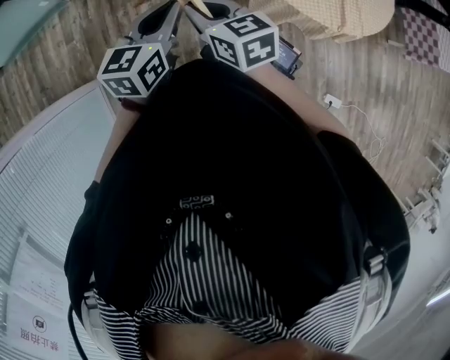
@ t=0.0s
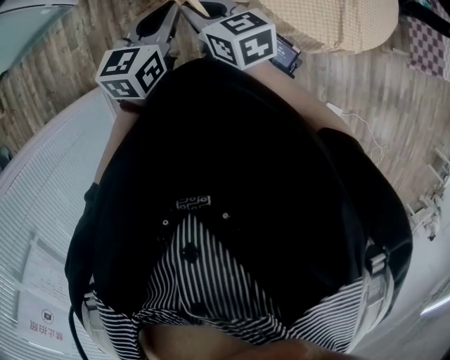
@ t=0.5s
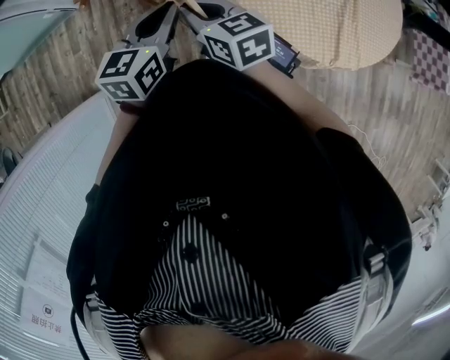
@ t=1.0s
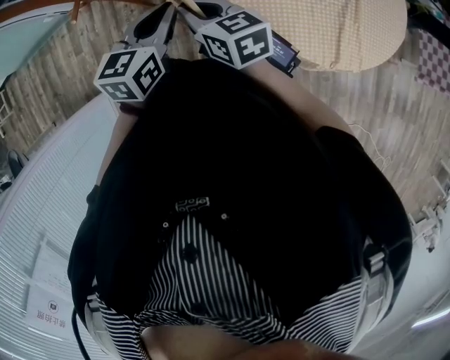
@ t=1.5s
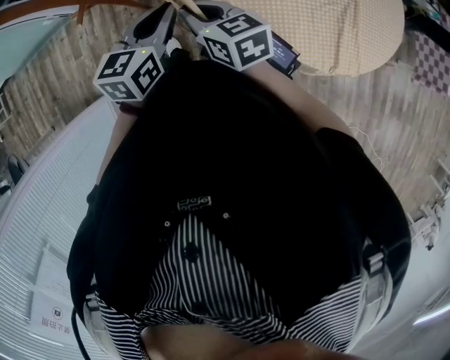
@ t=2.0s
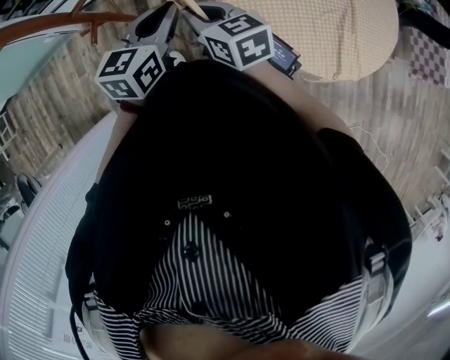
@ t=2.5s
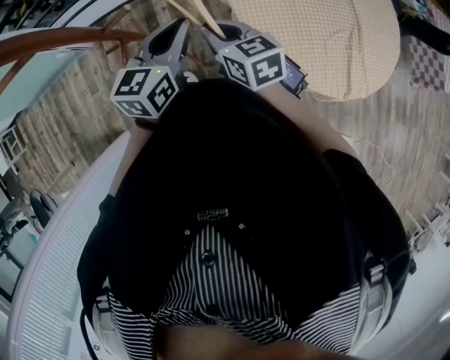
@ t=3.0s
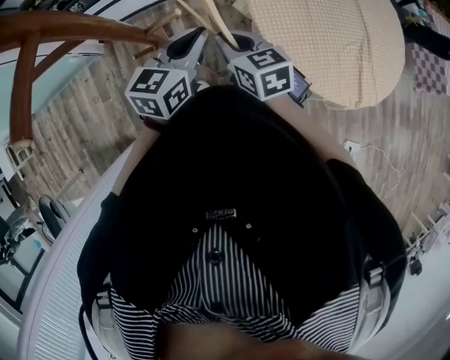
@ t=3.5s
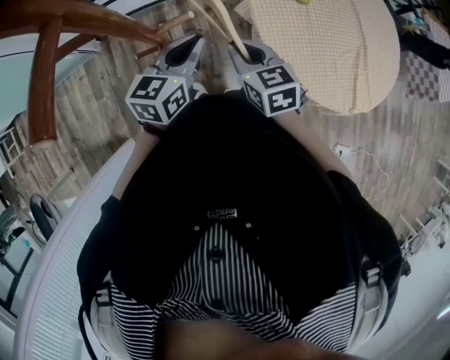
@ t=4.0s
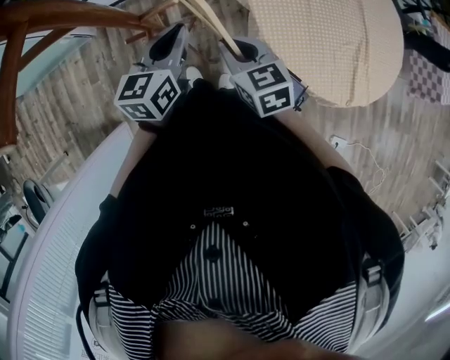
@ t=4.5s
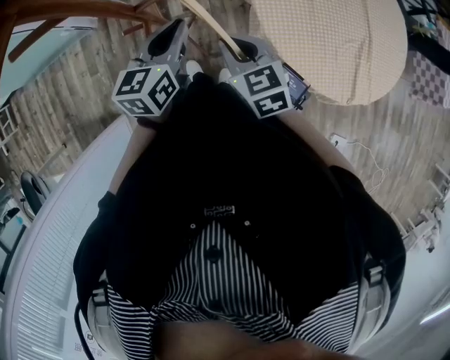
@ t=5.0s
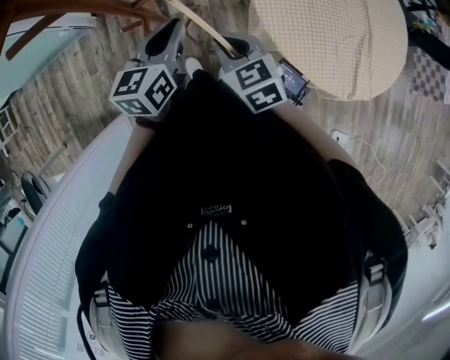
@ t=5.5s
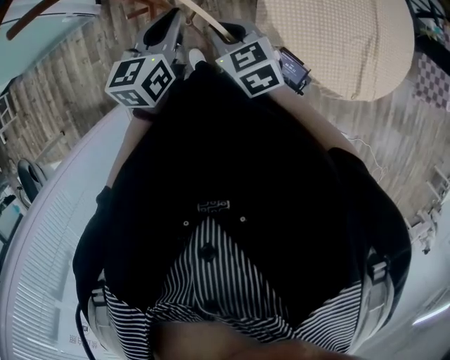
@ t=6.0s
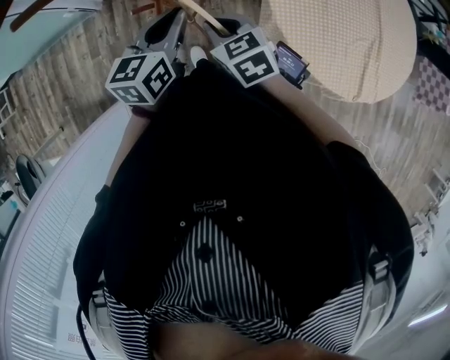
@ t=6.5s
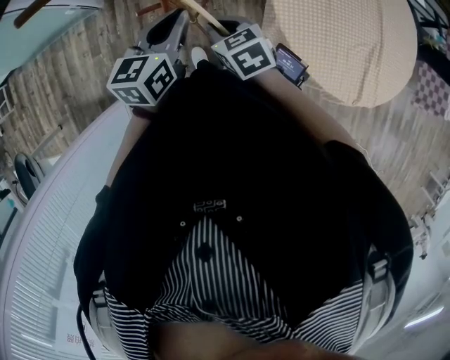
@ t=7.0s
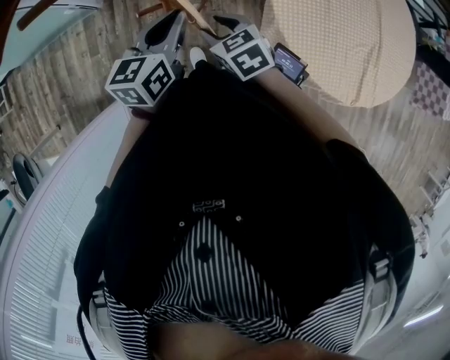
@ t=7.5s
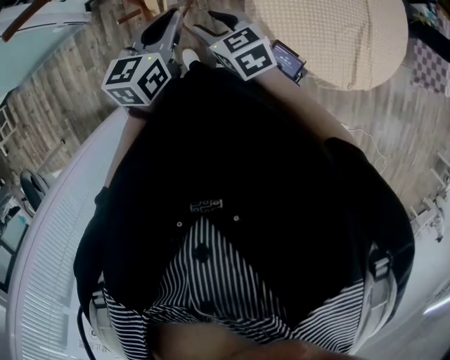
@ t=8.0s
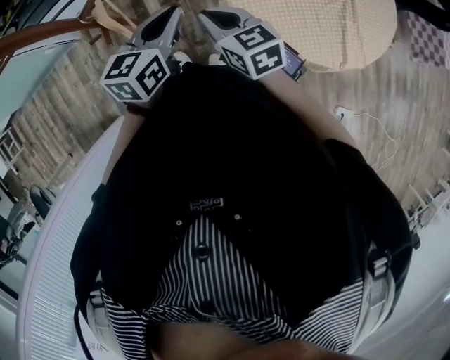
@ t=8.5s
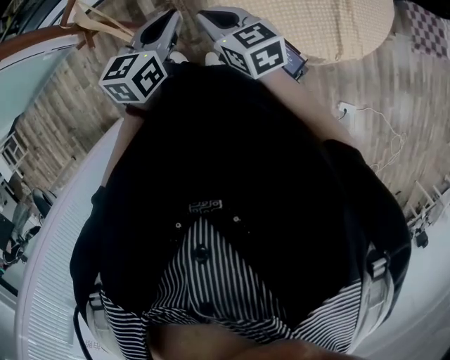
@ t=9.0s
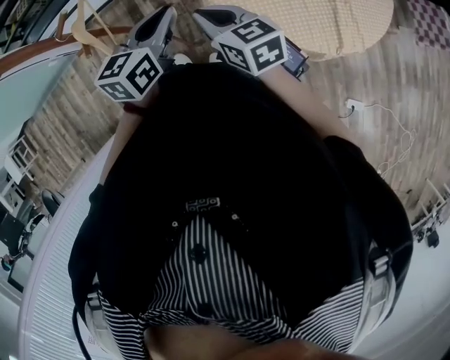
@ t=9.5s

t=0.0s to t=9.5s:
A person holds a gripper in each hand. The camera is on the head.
t=0.0s to t=2.0s: The grippers both shift forward and to the right by approximately 25 cm.
t=2.0s to t=4.0s: The grippers both shift to the left and forward by some 15 cm.
t=4.0s to t=5.5s: The right gripper goes some 5 cm backward.
t=5.5s to t=7.5s: The right gripper shifts approximately 10 cm downward and to the left, and opens.
t=7.5s to t=9.5s: The grippers both shift to the right by approximately 25 cm. The right gripper changes its angle by about 30 degrees, and closes its fingers.

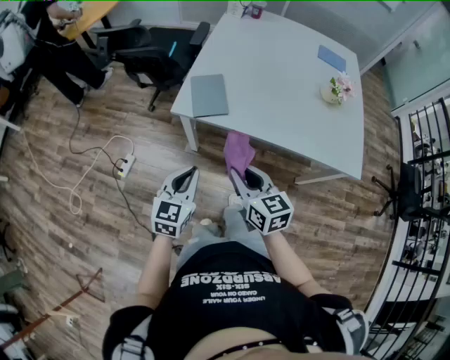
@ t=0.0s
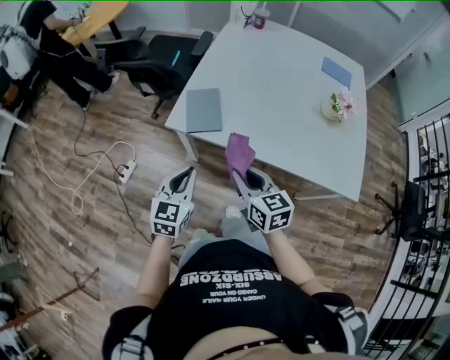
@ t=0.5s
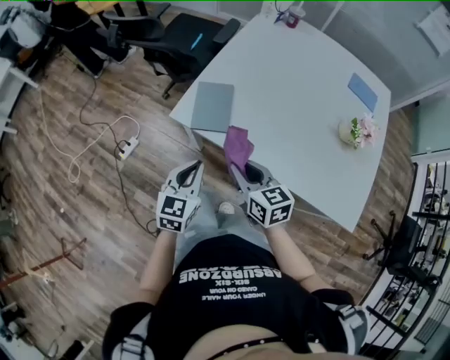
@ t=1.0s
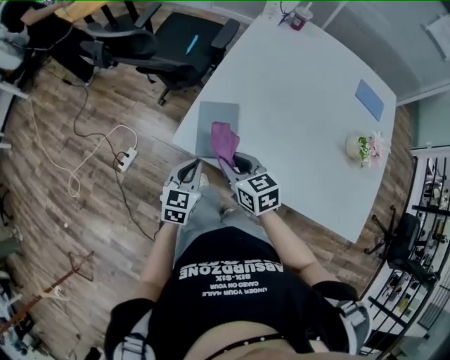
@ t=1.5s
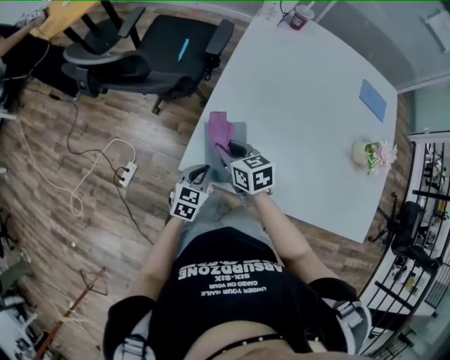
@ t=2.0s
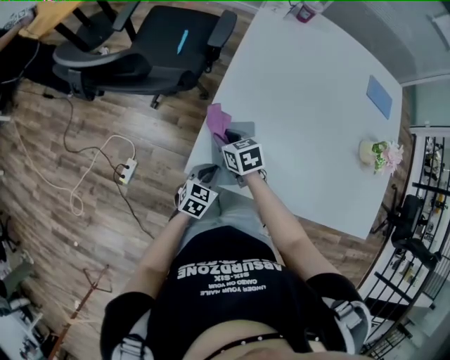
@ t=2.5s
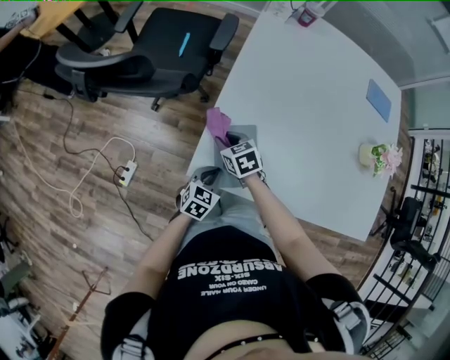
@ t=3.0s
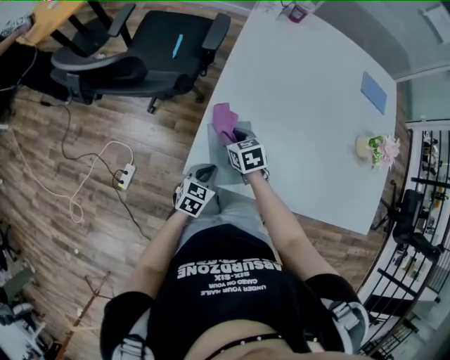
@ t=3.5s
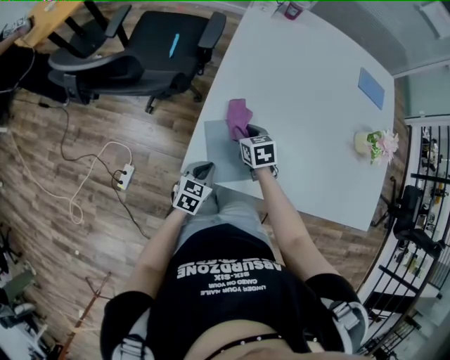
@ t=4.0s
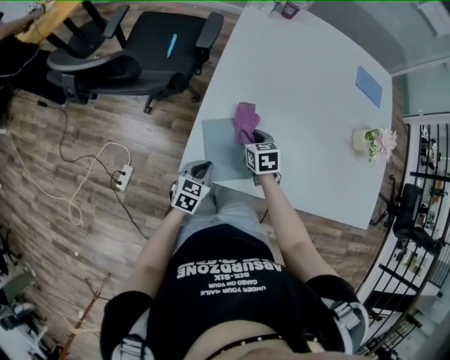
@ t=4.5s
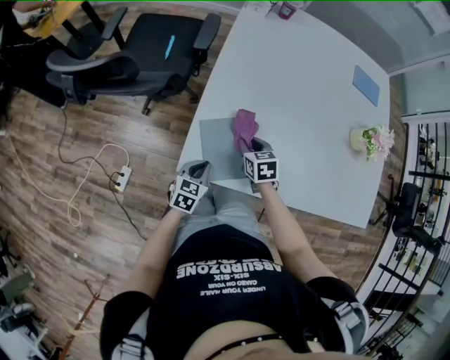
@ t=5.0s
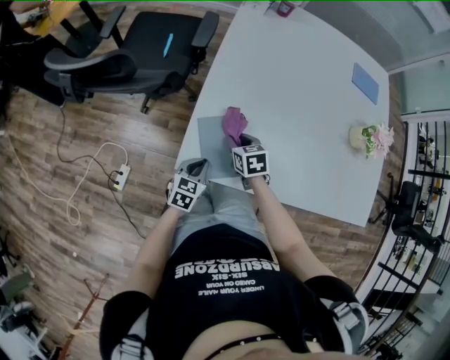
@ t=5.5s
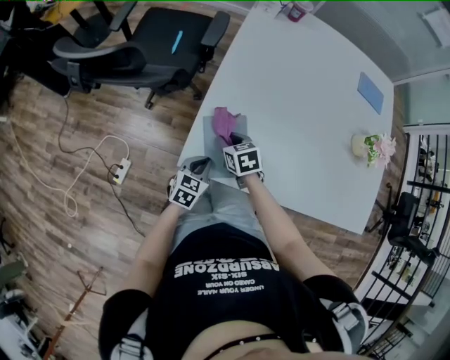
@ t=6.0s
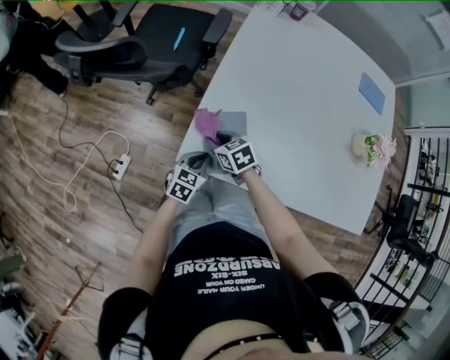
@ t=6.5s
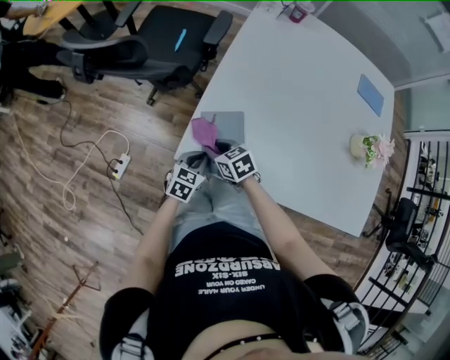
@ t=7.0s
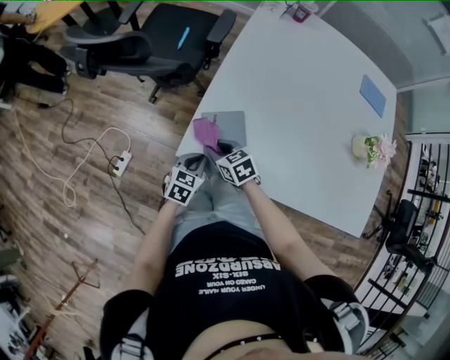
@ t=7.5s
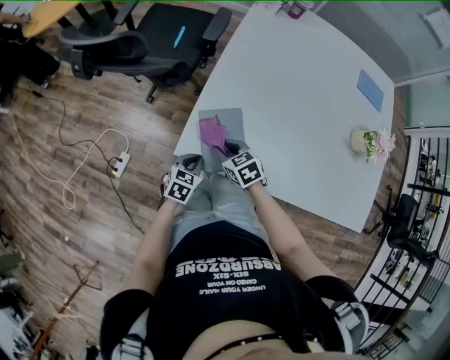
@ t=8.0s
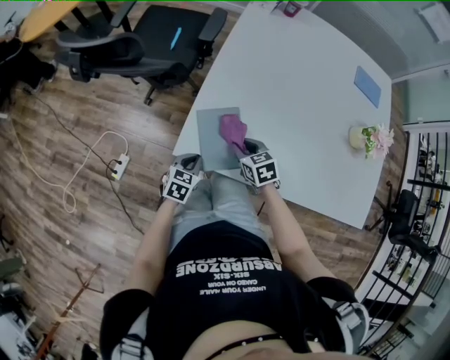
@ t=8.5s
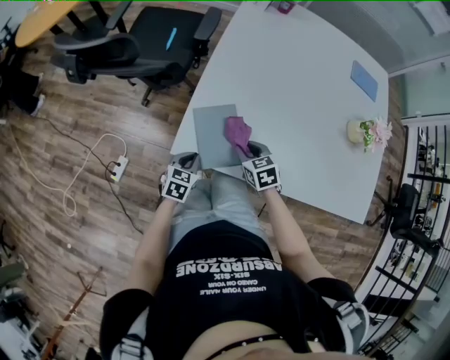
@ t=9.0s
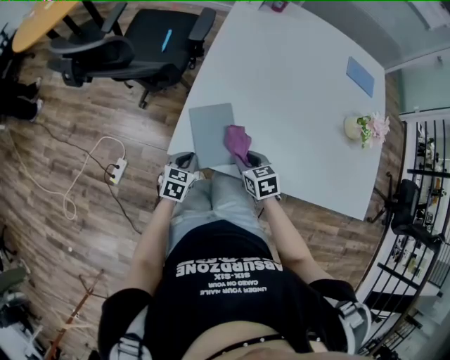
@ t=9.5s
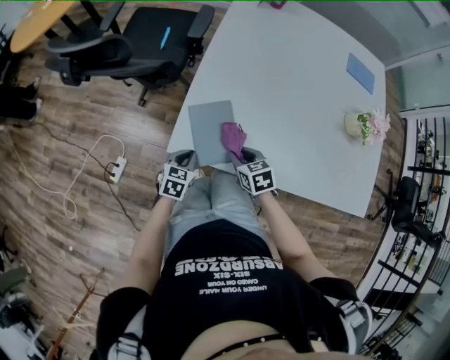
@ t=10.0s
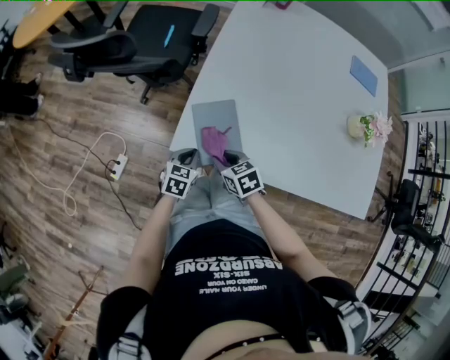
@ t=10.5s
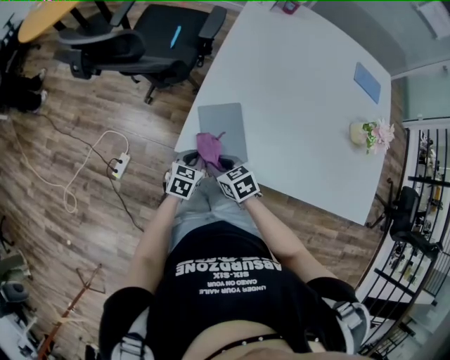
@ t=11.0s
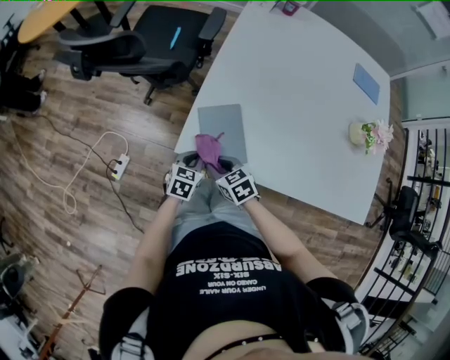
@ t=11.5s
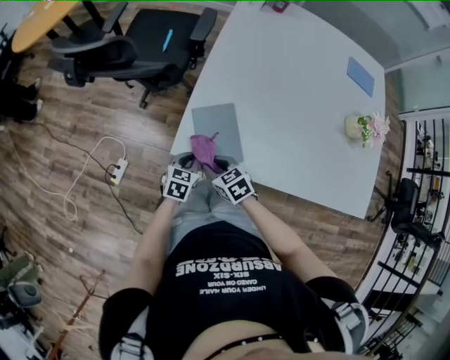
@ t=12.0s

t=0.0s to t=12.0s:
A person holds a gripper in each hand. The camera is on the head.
t=0.0s to t=2.0s: The left gripper travels forward and downward by about 35 cm, while the right gripper heads forward, covering approximately 40 cm, and turns by approximately 20 degrees.
t=2.0s to t=4.0s: The right gripper is displaced downward, forward and to the right by some 15 cm, and turns by approximately 20 degrees.
t=4.0s to t=6.0s: The right gripper travels backward by roughly 5 cm.
t=6.0s to t=8.0s: The right gripper goes approximately 5 cm backward.
t=8.0s to t=10.0s: The right gripper shifts approximately 10 cm to the right.
t=10.0s to t=12.0s: The right gripper travels to the left by approximately 10 cm.

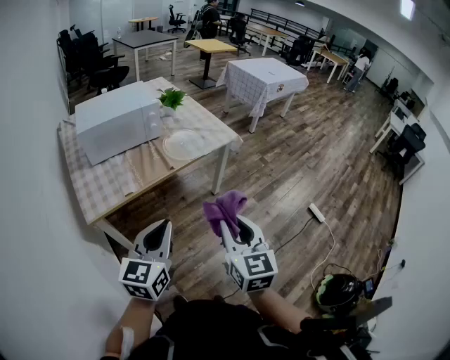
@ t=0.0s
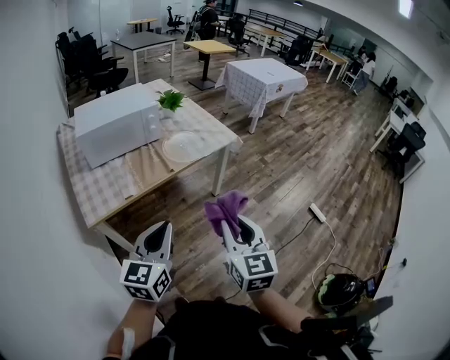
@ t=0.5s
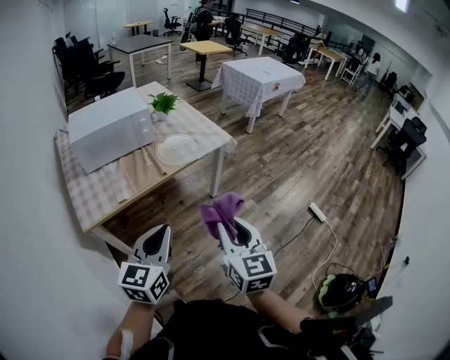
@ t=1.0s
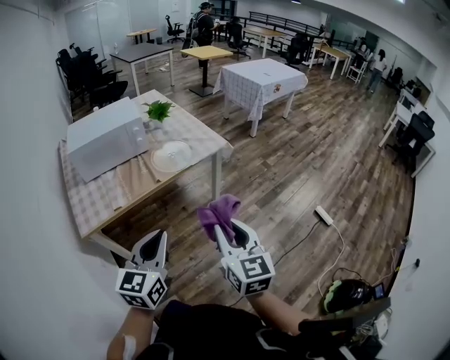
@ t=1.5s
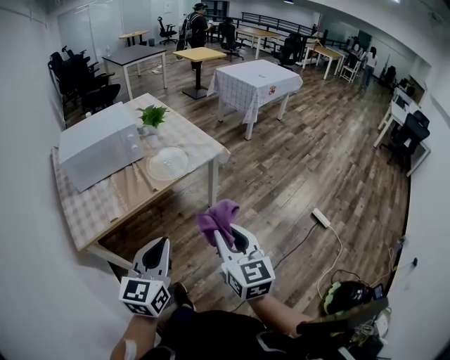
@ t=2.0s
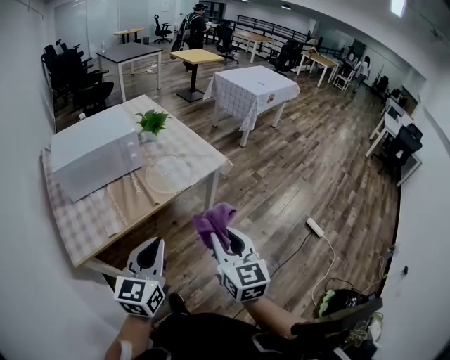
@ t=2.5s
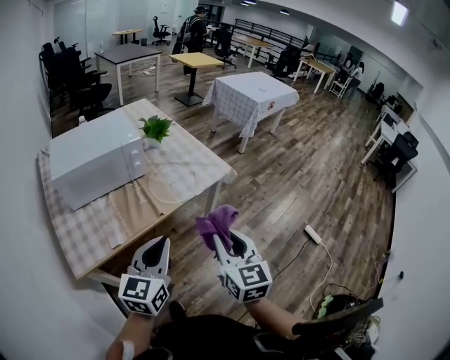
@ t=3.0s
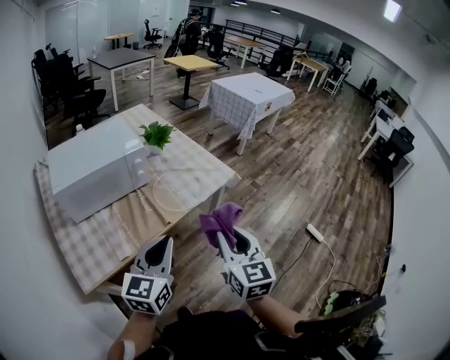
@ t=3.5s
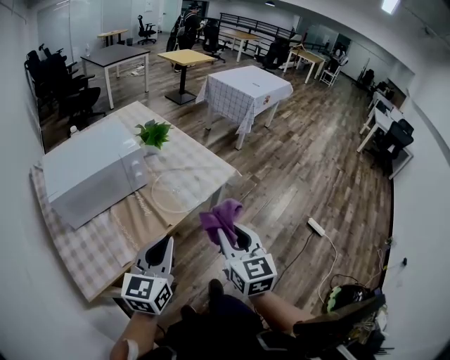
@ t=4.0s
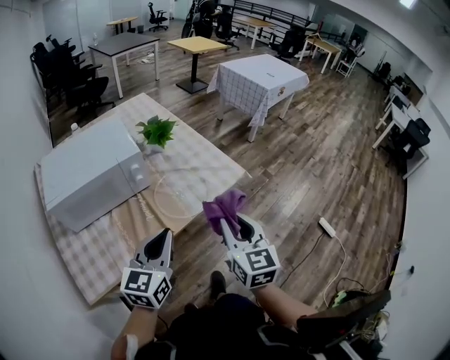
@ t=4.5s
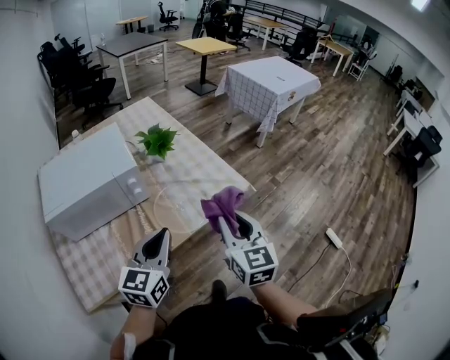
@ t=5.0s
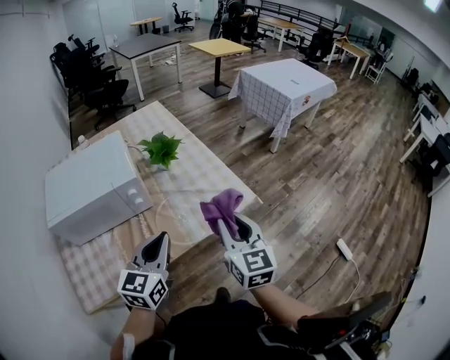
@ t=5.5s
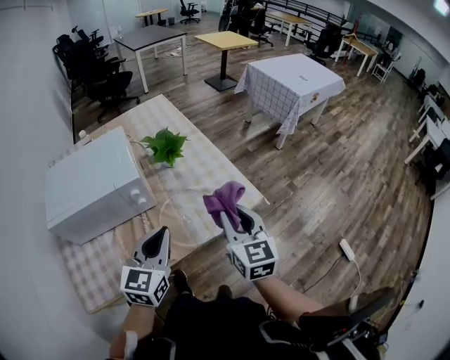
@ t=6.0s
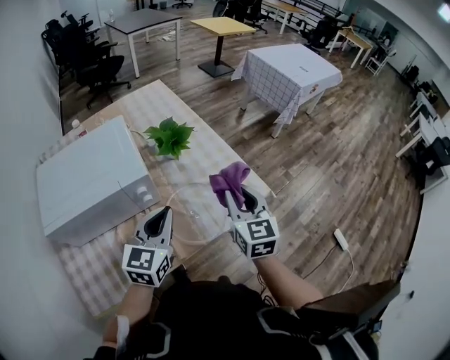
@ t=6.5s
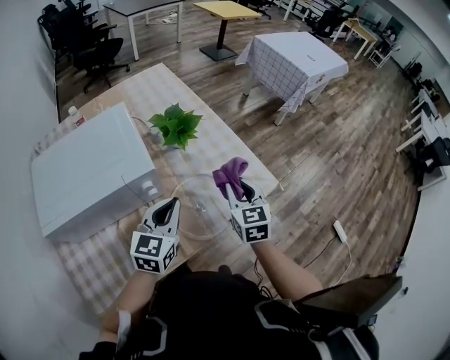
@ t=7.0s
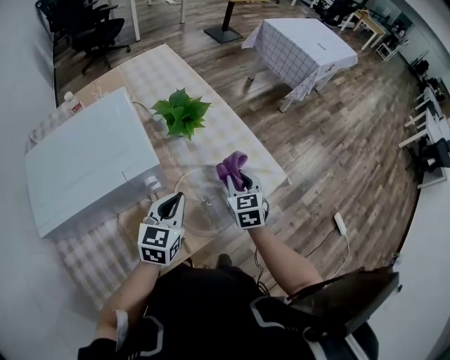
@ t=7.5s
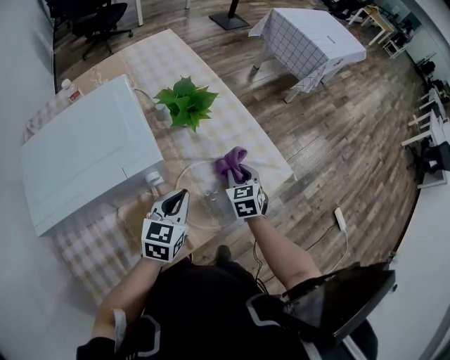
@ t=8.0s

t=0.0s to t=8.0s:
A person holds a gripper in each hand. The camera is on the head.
t=0.0s to t=2.0s: The left gripper shifts about 10 cm to the right. Meanwhile the right gripper heads to the right and forward, covering roughly 10 cm.
t=2.0s to t=4.0s: The grippers both shift forward and to the left by about 25 cm.
t=4.0s to t=6.0s: Both grippers travel together forward, roughly 25 cm.
t=6.0s to t=8.0s: The left gripper is displaced downward, forward and to the left by some 20 cm. Meanwhile the right gripper is displaced downward and forward by about 30 cm, and swivels some 30 degrees.
